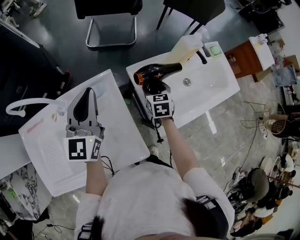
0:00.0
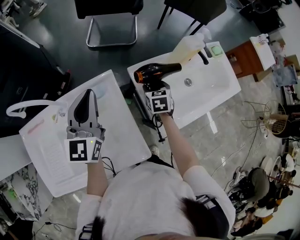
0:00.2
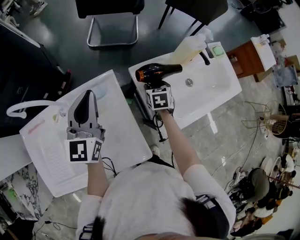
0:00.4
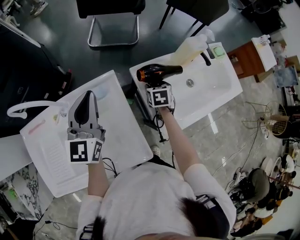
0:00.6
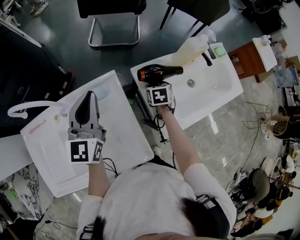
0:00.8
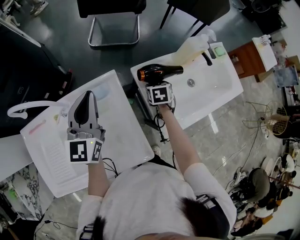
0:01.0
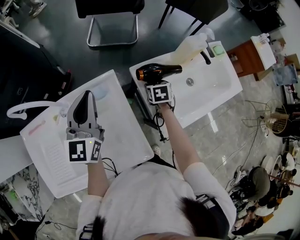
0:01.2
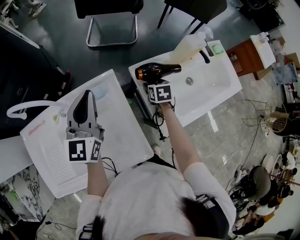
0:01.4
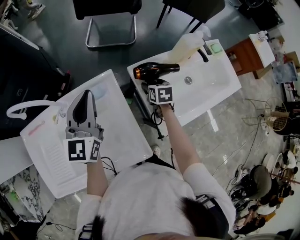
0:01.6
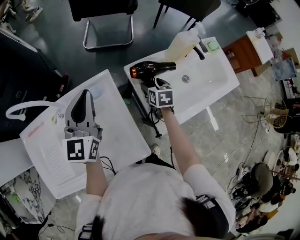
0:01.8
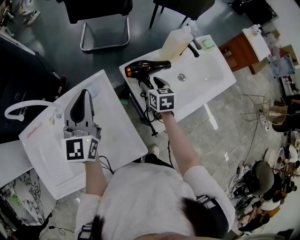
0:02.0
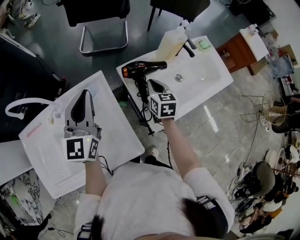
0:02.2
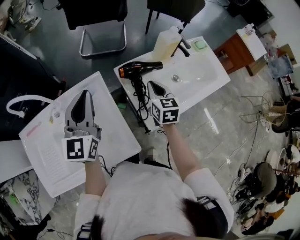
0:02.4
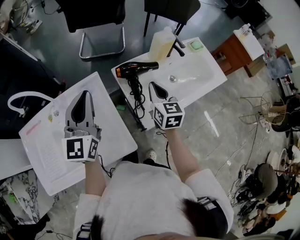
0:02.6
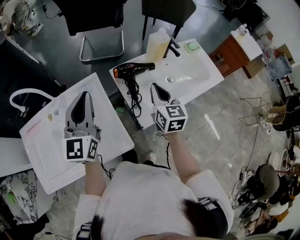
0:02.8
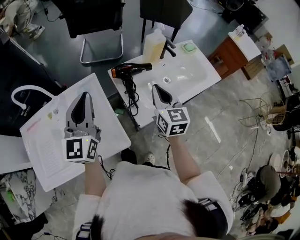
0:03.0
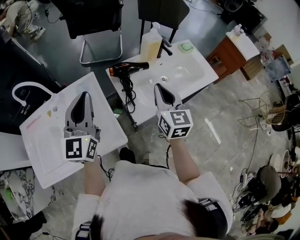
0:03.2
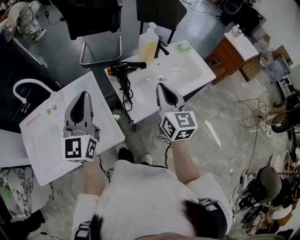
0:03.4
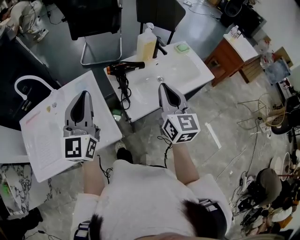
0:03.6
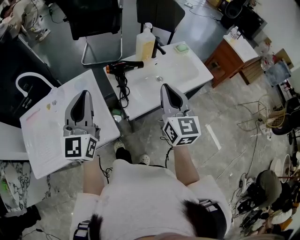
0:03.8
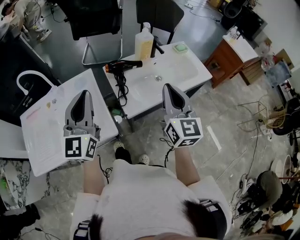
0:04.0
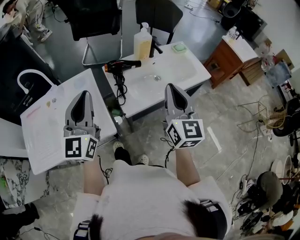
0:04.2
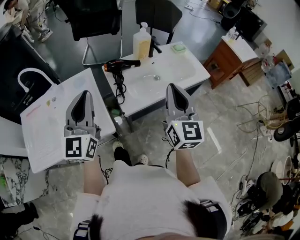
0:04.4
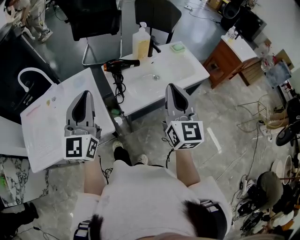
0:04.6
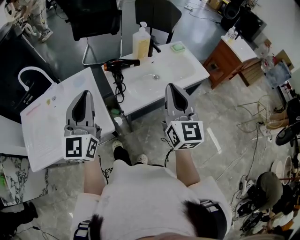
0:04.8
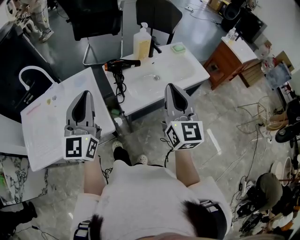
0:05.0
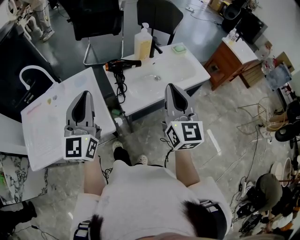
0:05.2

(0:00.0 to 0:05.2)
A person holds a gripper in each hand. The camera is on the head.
0:00.0 - 0:01.8: The grippers move only a little.
0:01.8 - 0:03.4: The left gripper is displaced backward, to the right and upward by approximately 20 cm. The right gripper heads upward, backward and to the right, covering approximately 35 cm, points its fingers about 40 degrees further upward, and closes up.
0:03.4 - 0:05.2: The right gripper is displaced backward, to the right and upward by roughly 15 cm. The left gripper heads backward and to the right, covering approximately 10 cm.

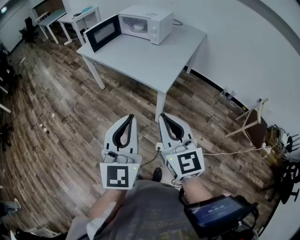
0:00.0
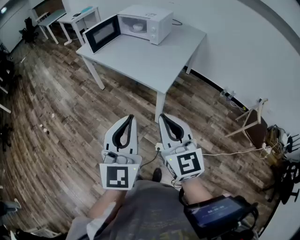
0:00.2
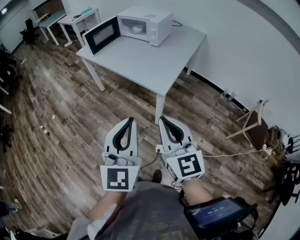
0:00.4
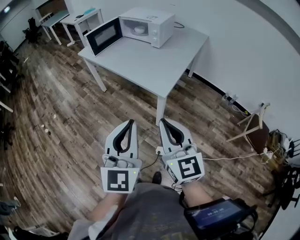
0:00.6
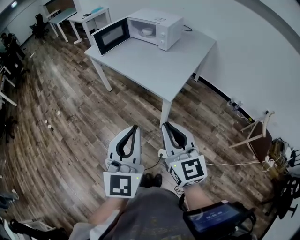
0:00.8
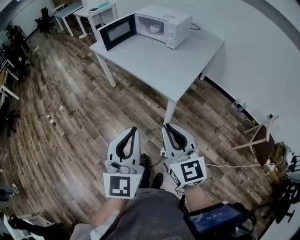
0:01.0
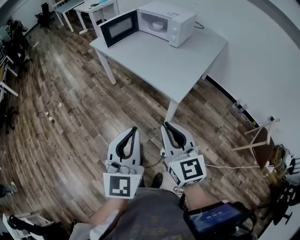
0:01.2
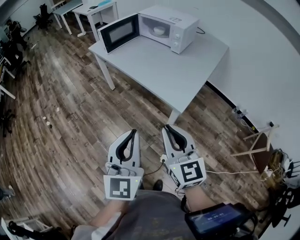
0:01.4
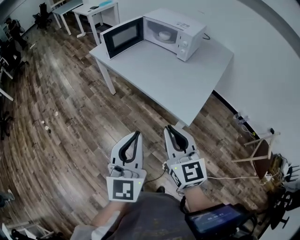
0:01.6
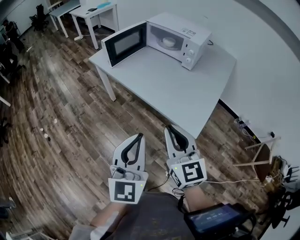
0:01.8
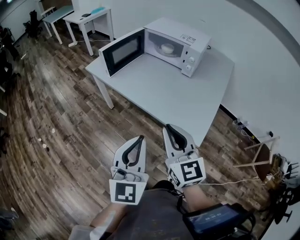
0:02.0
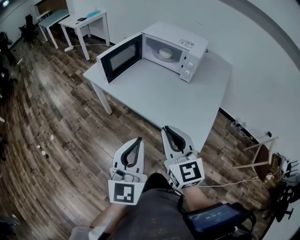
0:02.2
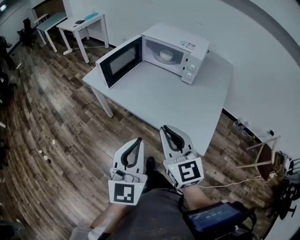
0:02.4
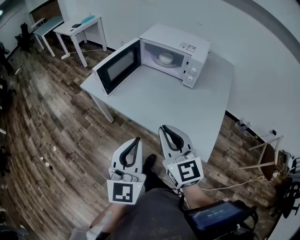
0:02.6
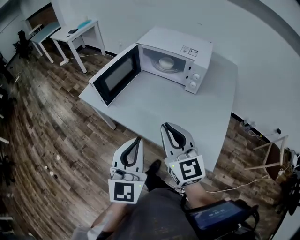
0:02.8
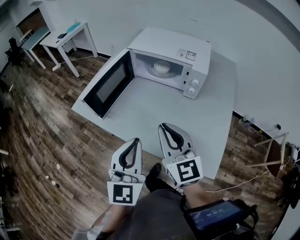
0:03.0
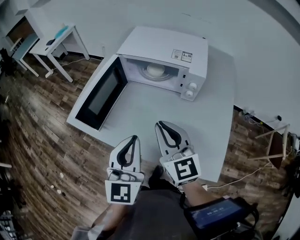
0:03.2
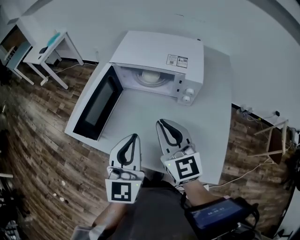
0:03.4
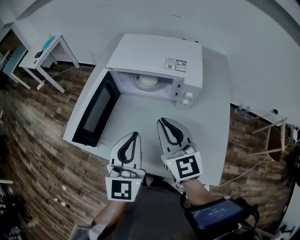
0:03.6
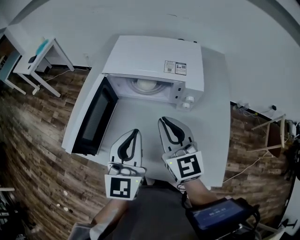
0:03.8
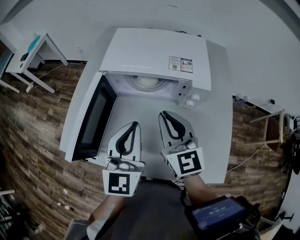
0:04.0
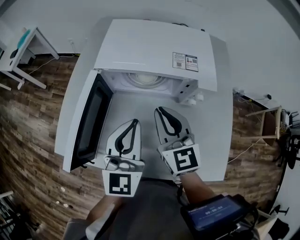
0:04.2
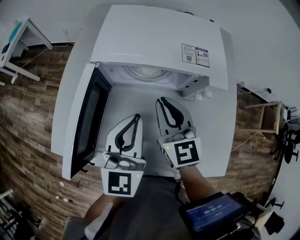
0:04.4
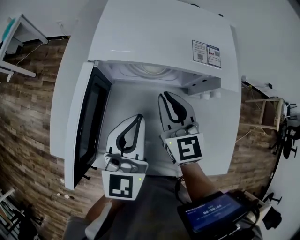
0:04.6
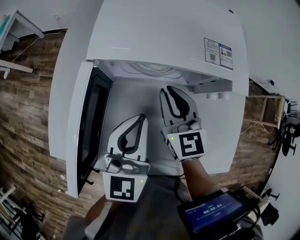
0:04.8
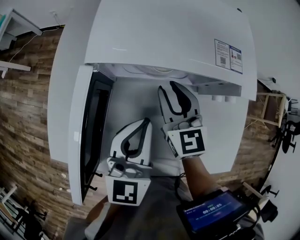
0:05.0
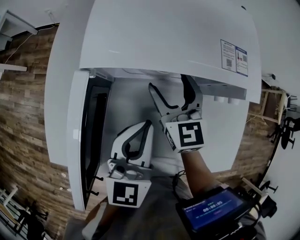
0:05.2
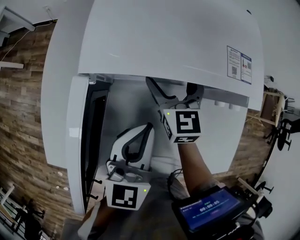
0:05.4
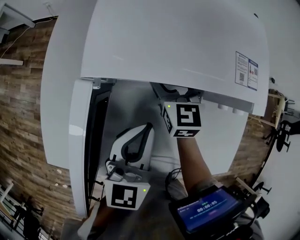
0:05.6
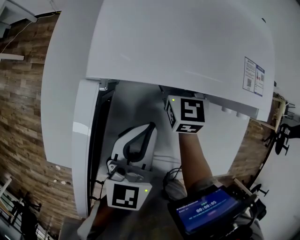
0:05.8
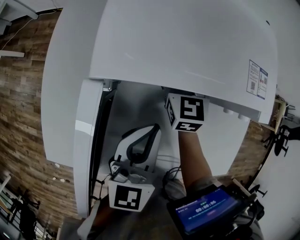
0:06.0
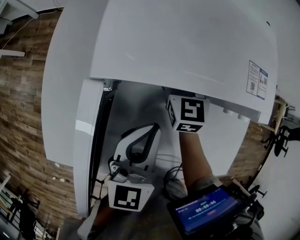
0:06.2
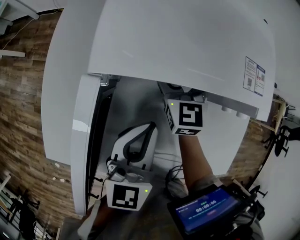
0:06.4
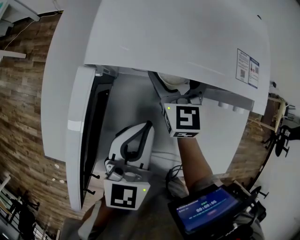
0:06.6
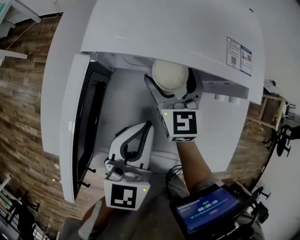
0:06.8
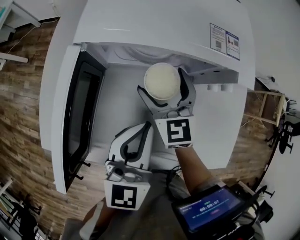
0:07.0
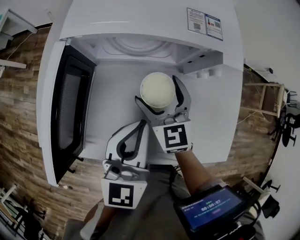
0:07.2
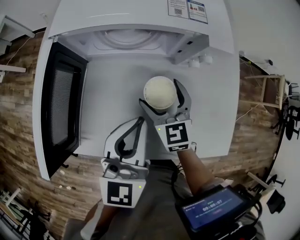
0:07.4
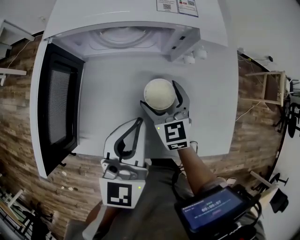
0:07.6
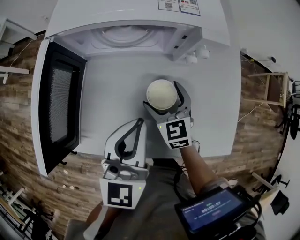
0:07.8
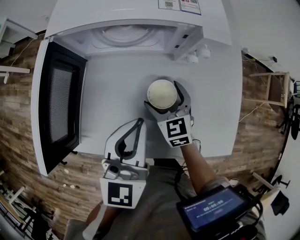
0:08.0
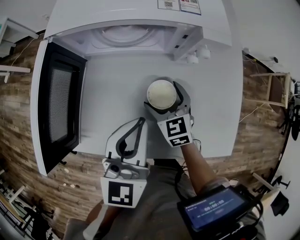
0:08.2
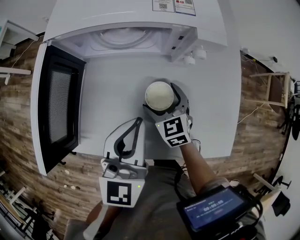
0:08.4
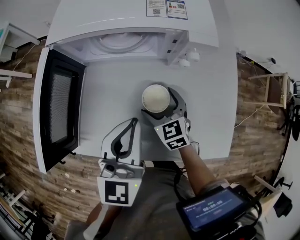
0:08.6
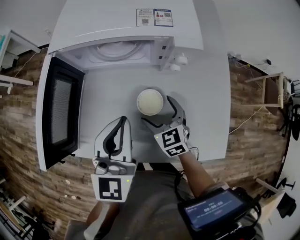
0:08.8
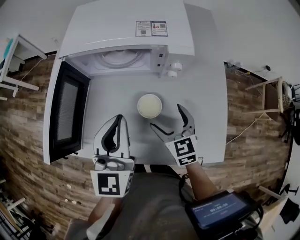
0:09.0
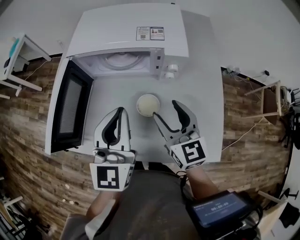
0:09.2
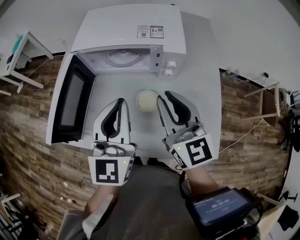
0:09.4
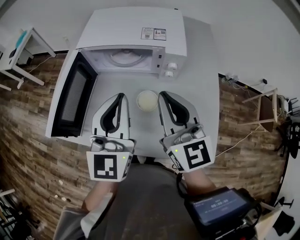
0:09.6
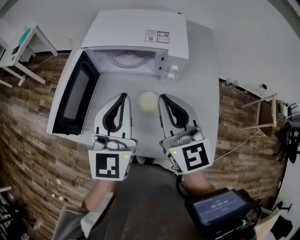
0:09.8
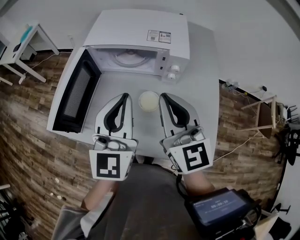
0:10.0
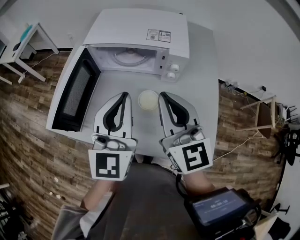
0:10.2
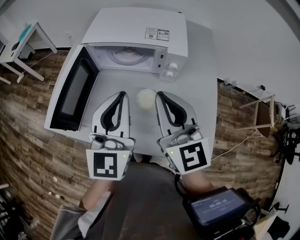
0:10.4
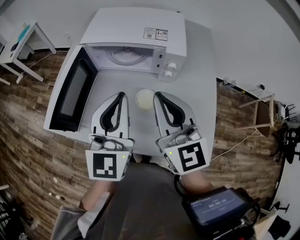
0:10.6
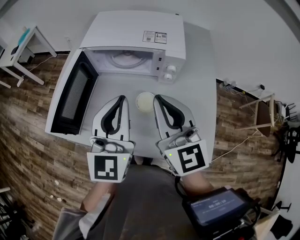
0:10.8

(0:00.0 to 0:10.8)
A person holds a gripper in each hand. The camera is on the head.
0:00.0 - 0:01.6: The left gripper travels forward, to the left and downward by approximately 15 cm, while the right gripper is displaced forward by about 15 cm.
0:01.6 - 0:03.0: Both grippers move forward, approximately 35 cm.
0:03.0 - 0:04.6: Both grippers travel together forward, approximately 30 cm. The right gripper rotates approximately 20 degrees. Meanwhile the left gripper turns by approximately 20 degrees.
0:04.6 - 0:06.2: The right gripper heads forward and downward, covering about 15 cm, and opens. The left gripper shifts some 5 cm downward.
0:06.2 - 0:07.8: The left gripper goes approximately 15 cm backward and to the right. The right gripper heads backward and to the right, covering some 25 cm.
0:07.8 - 0:09.2: The right gripper heads upward, covering roughly 15 cm, changes its angle by some 20 degrees, and closes its fingers. Meanwhile the left gripper shifts roughly 5 cm upward.
0:09.2 - 0:10.8: The right gripper travels upward by approximately 10 cm, and closes, while the left gripper moves some 5 cm.

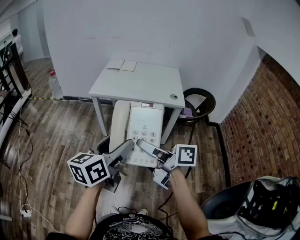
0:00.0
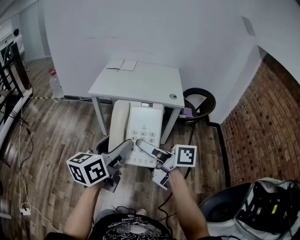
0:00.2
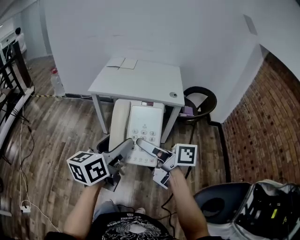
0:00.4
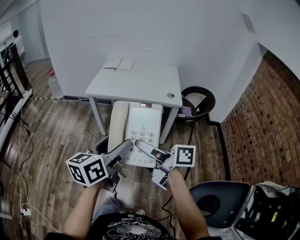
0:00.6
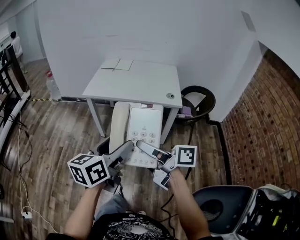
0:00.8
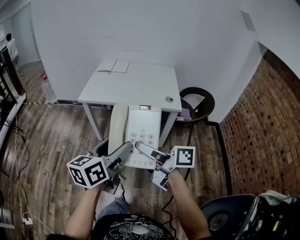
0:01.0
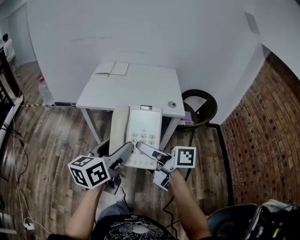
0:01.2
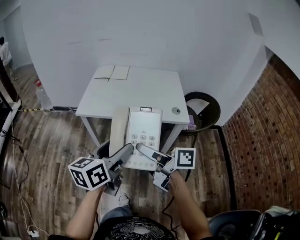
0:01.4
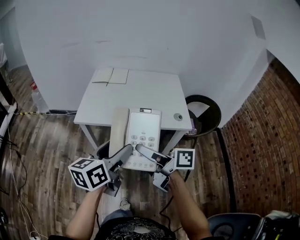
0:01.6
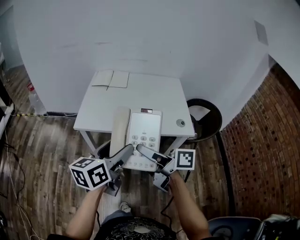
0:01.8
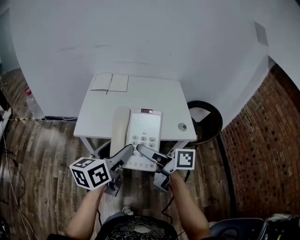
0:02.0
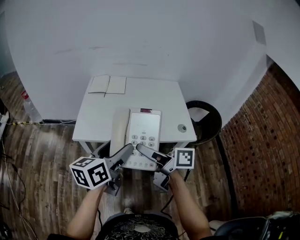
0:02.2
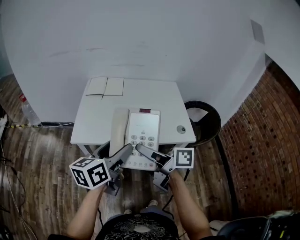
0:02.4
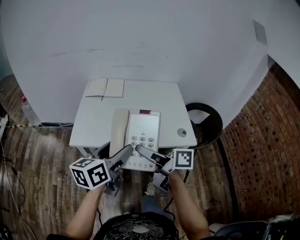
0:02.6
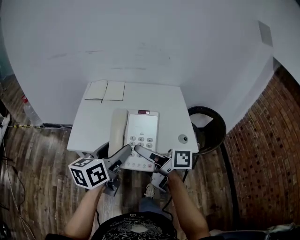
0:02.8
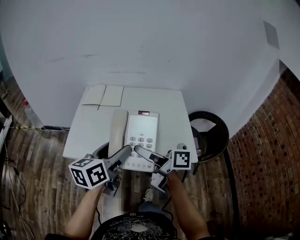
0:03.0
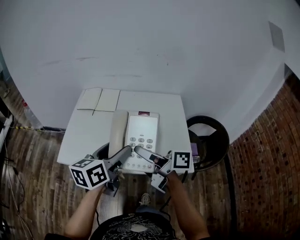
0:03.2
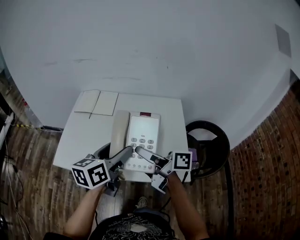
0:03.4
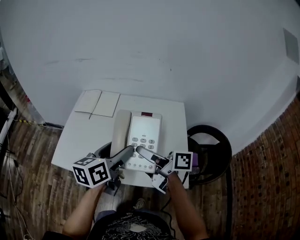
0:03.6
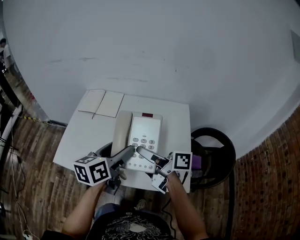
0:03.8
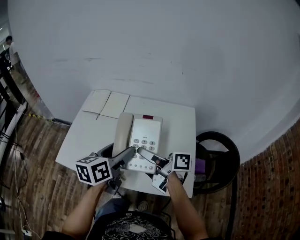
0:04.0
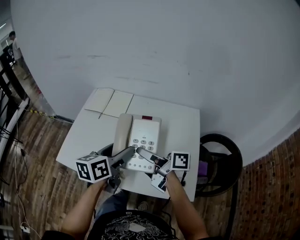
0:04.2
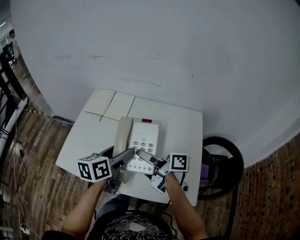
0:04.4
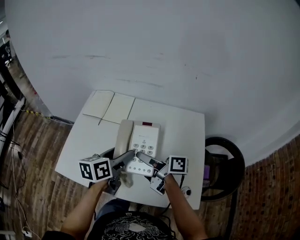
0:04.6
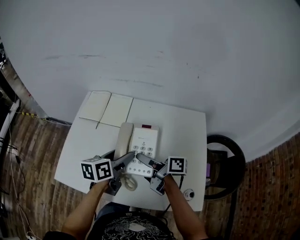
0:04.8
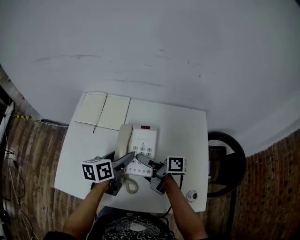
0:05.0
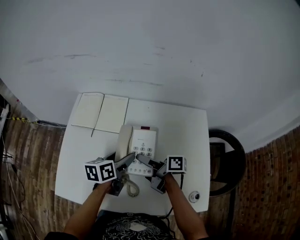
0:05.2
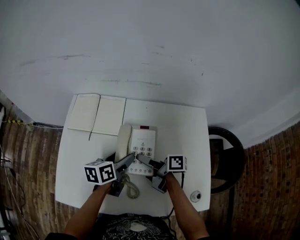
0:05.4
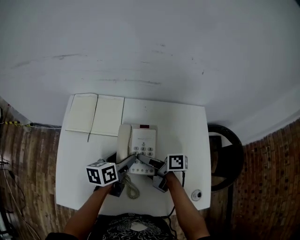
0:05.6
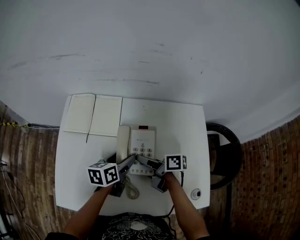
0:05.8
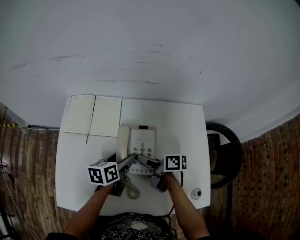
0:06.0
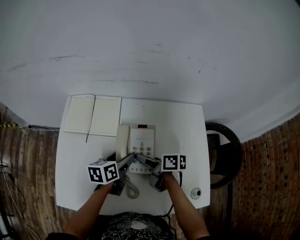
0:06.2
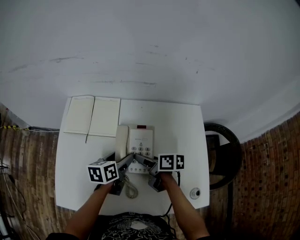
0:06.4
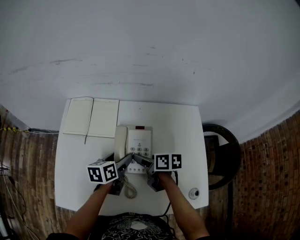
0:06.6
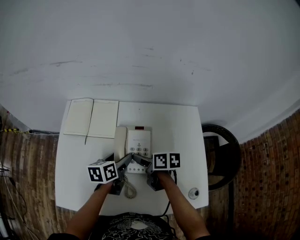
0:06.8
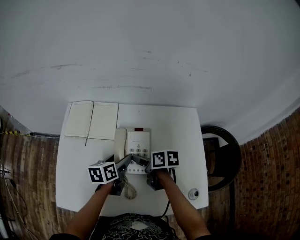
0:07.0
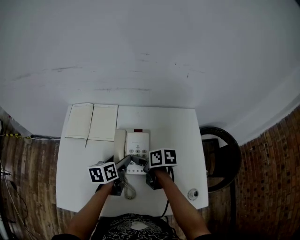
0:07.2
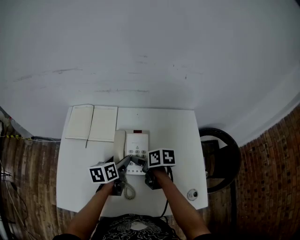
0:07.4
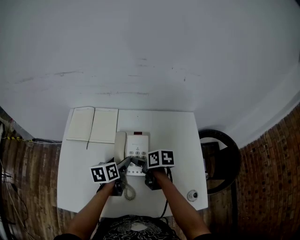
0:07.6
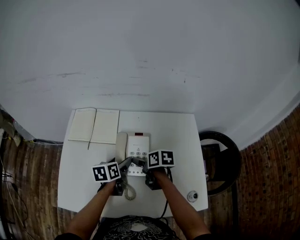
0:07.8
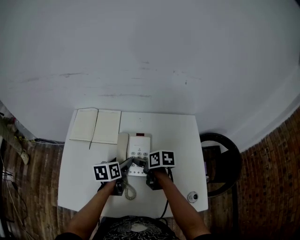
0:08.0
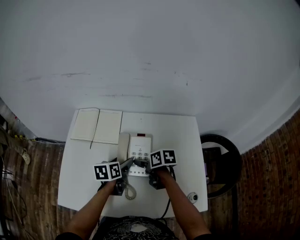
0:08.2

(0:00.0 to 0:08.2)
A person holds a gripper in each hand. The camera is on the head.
0:00.0 - 0:01.6: Both grippers travel together forward, roughly 25 cm.
0:01.6 - 0:03.2: The grippers both shift forward and to the right by approximately 30 cm.
0:03.2 - 0:05.0: Both grippers travel together forward and downward, roughly 30 cm. The left gripper turns by approximately 20 degrees. Meanwhile the right gripper rotates about 20 degrees.
0:05.0 - 0:06.6: The grippers both shift downward by about 5 cm. The right gripper changes its angle by approximately 30 degrees.
0:06.6 - 0:08.2: The grippers make only small movements.
